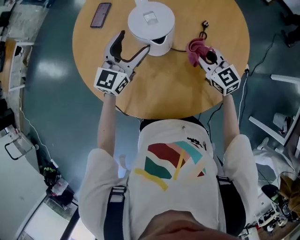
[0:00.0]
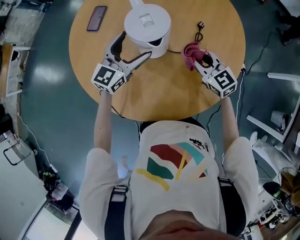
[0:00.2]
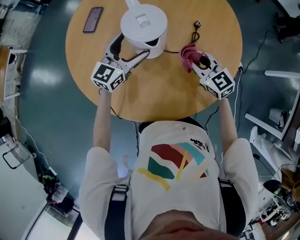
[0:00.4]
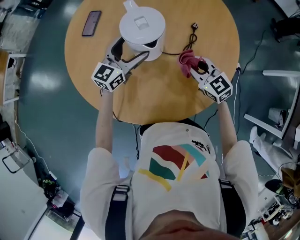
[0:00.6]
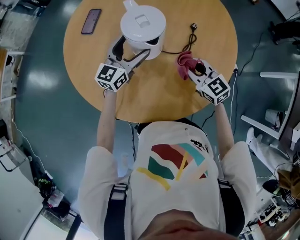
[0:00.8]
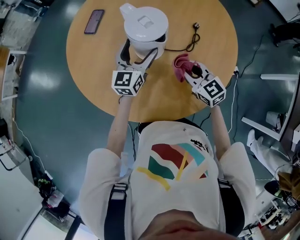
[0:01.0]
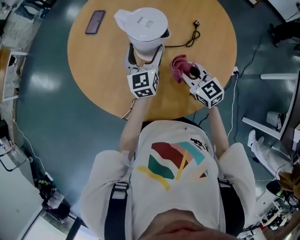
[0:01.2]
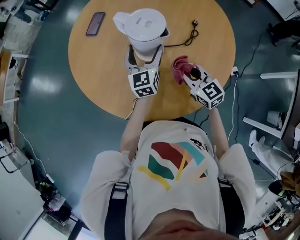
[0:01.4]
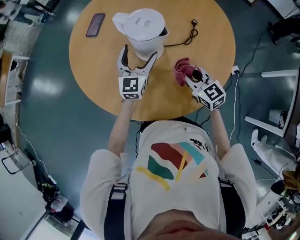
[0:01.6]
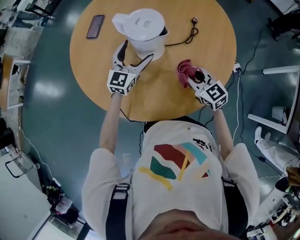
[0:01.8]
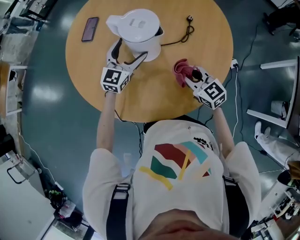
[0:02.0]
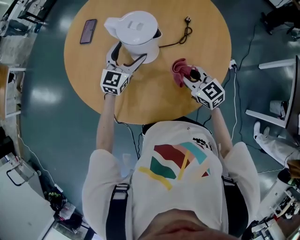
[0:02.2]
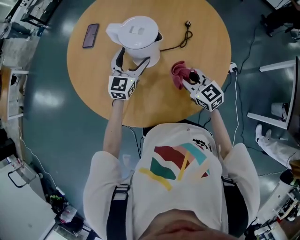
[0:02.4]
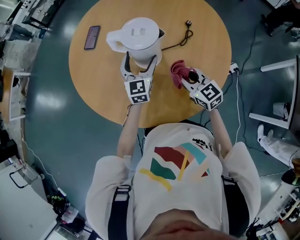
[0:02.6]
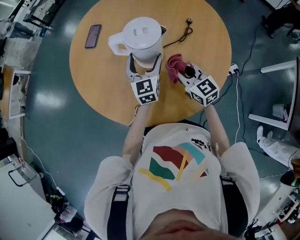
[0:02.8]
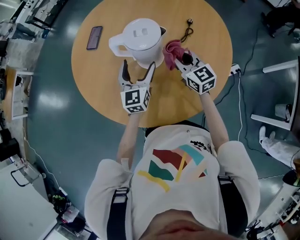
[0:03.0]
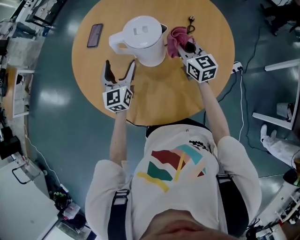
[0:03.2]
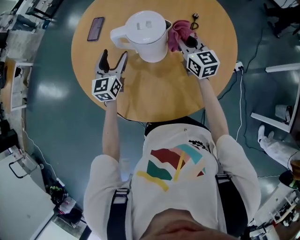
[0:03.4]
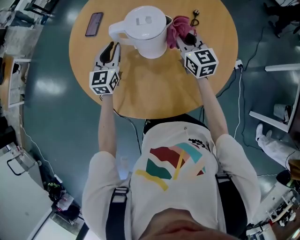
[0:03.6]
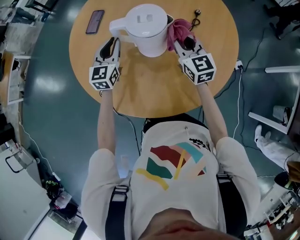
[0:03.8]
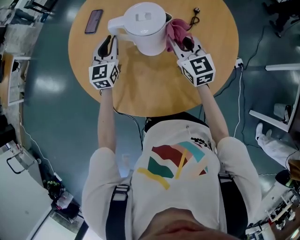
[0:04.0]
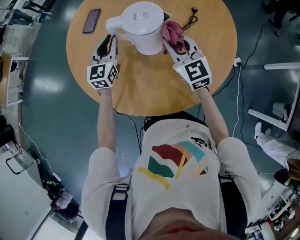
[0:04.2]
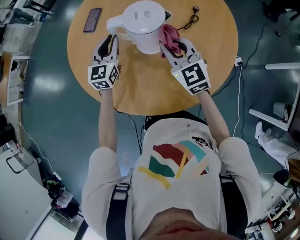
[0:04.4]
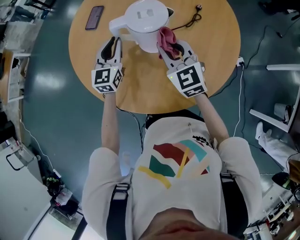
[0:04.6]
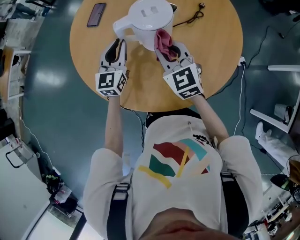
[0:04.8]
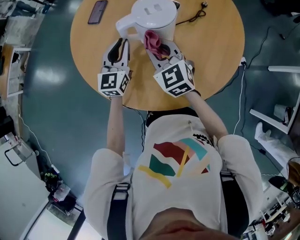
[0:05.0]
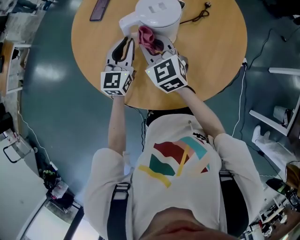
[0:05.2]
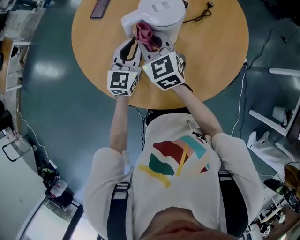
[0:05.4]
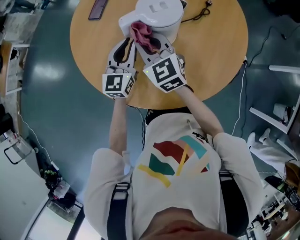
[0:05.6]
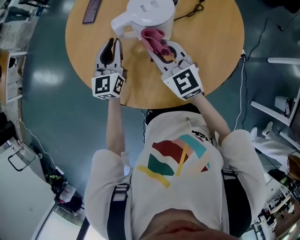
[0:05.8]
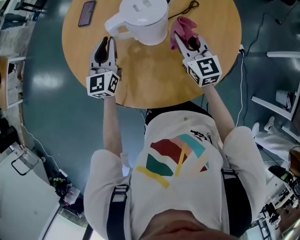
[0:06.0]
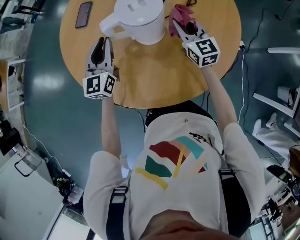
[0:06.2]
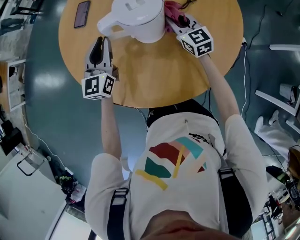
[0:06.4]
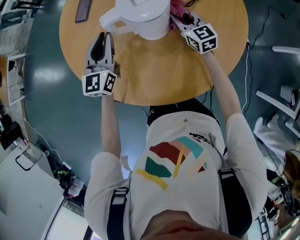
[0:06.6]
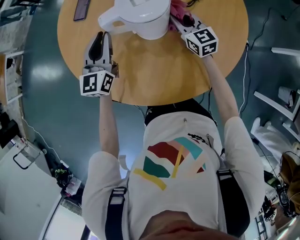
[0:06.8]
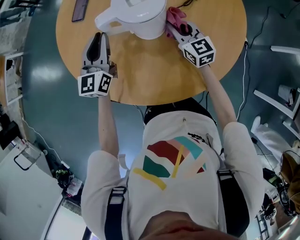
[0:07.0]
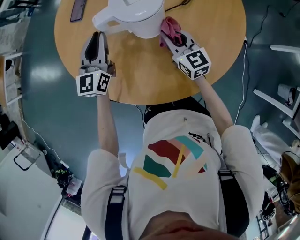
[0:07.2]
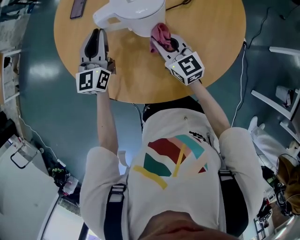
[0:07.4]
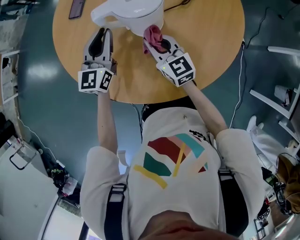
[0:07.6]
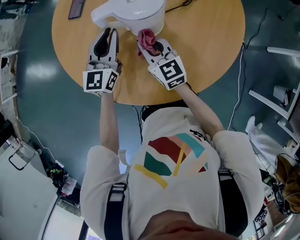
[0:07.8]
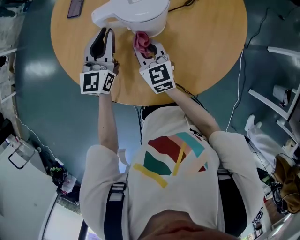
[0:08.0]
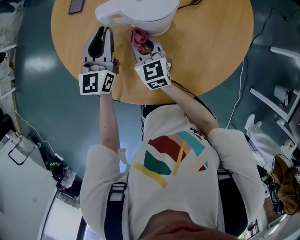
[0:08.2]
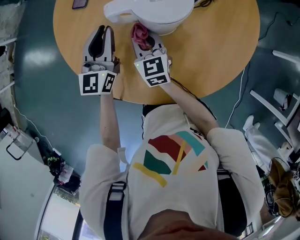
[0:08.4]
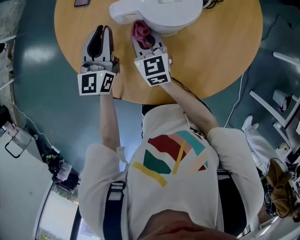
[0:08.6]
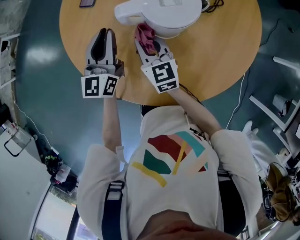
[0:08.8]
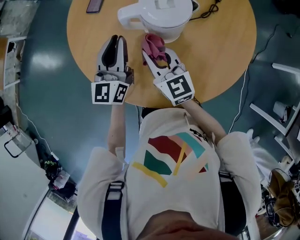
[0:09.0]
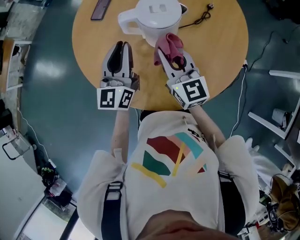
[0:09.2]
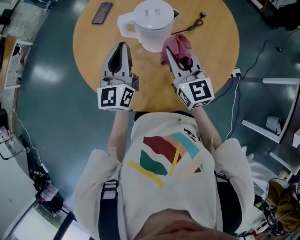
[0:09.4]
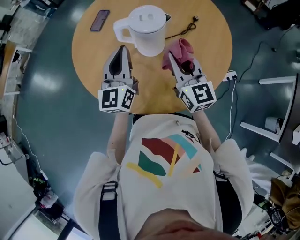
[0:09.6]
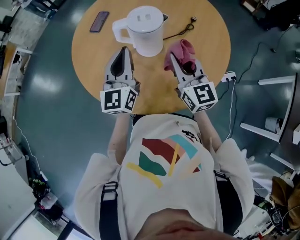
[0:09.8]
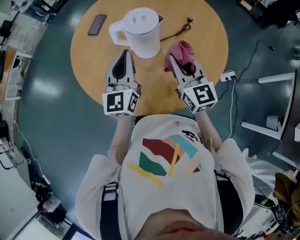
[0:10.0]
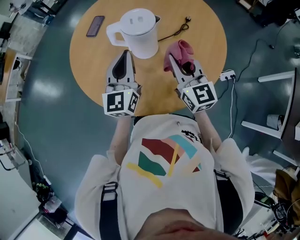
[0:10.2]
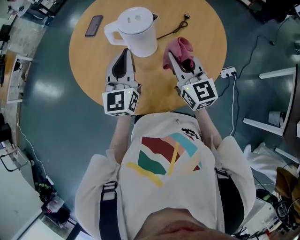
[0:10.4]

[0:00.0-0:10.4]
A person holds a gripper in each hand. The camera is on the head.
0:00.0 to 0:01.4: The left gripper ends up approximately 5 cm from where it was, and rotates approximately 30 degrees. Meanwhile the right gripper is displaced backward by roughly 10 cm.
0:01.4 to 0:03.0: The right gripper shifts roughly 5 cm forward.
0:03.0 to 0:04.4: The right gripper is displaced to the left by approximately 5 cm. The left gripper travels to the left and forward by about 10 cm, and closes its fingers.
0:04.4 to 0:06.0: The right gripper is displaced downward by roughly 5 cm, and moves roughly 10 cm to the left and comes back.
0:06.0 to 0:07.4: The right gripper travels to the left and downward by approximately 10 cm, and goes forward and returns, approximately 10 cm each way.
0:07.4 to 0:09.0: The left gripper moves some 5 cm to the right and comes back, while the right gripper travels to the left and upward by about 10 cm.
0:09.0 to 0:10.4: The right gripper is displaced to the right, upward and backward by approximately 20 cm, while the left gripper goes approximately 15 cm backward, to the right and upward.

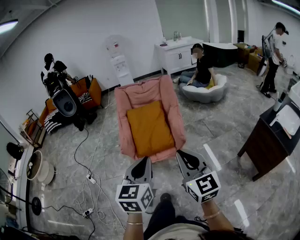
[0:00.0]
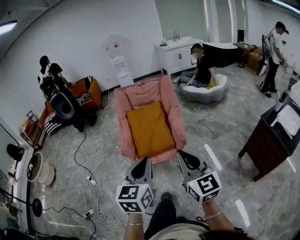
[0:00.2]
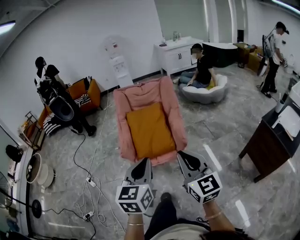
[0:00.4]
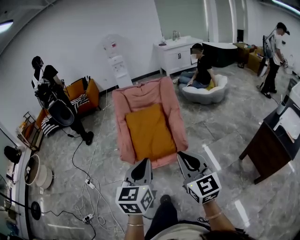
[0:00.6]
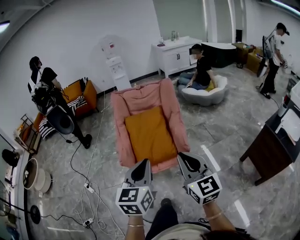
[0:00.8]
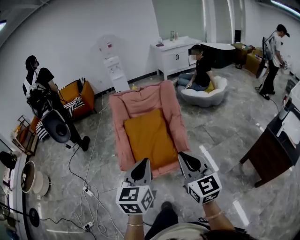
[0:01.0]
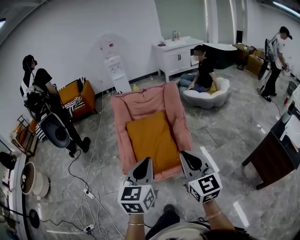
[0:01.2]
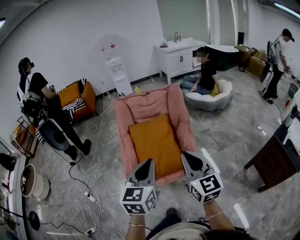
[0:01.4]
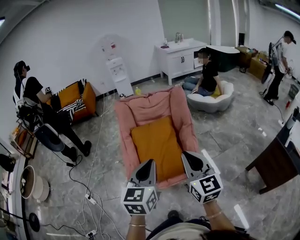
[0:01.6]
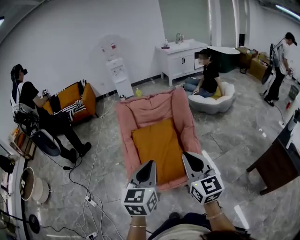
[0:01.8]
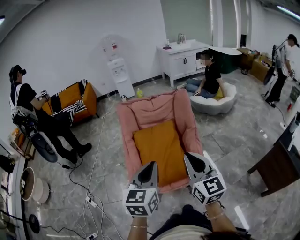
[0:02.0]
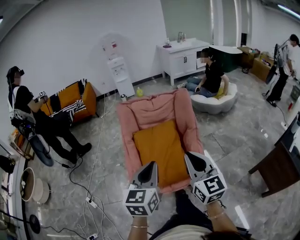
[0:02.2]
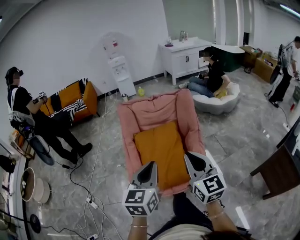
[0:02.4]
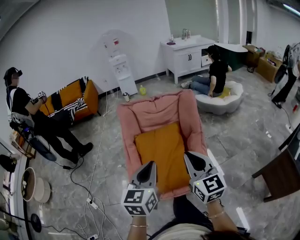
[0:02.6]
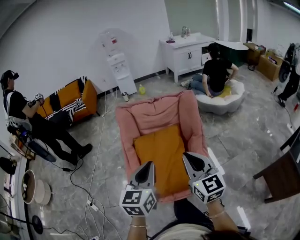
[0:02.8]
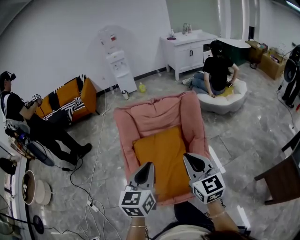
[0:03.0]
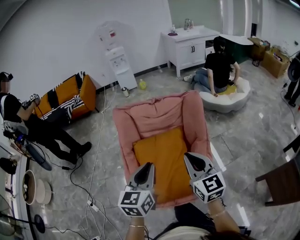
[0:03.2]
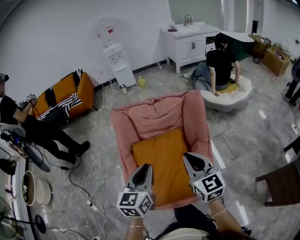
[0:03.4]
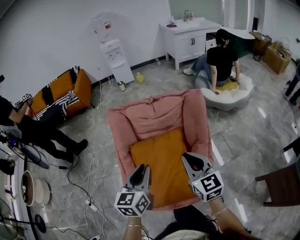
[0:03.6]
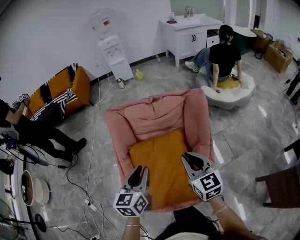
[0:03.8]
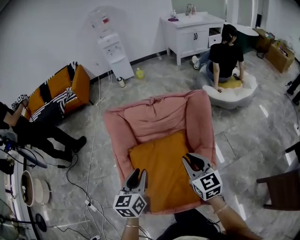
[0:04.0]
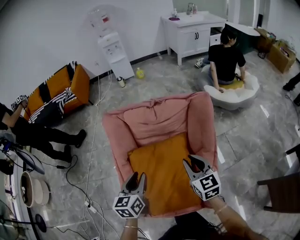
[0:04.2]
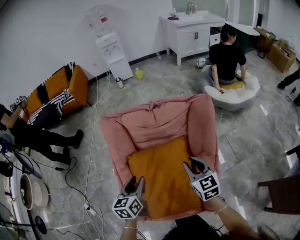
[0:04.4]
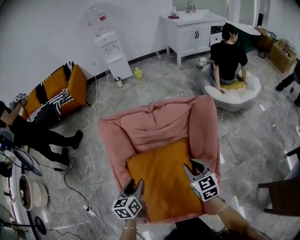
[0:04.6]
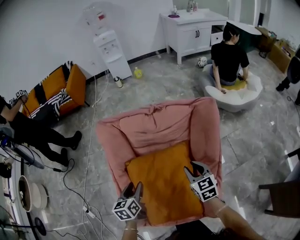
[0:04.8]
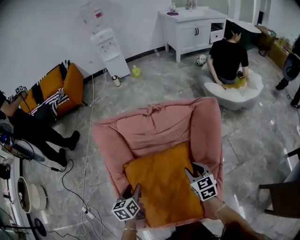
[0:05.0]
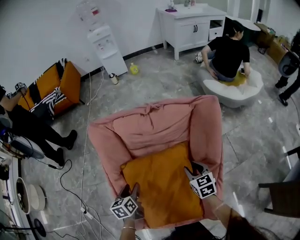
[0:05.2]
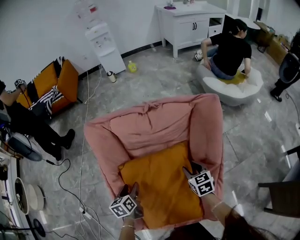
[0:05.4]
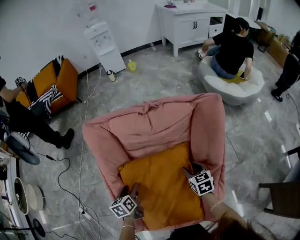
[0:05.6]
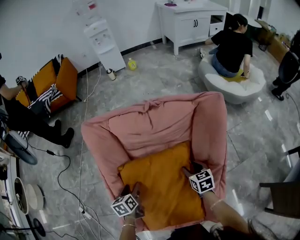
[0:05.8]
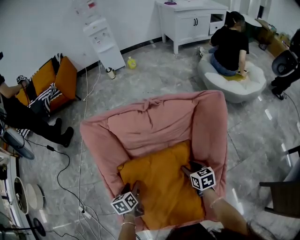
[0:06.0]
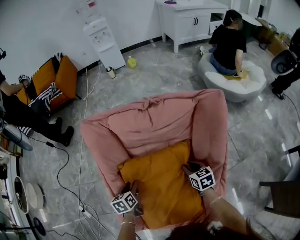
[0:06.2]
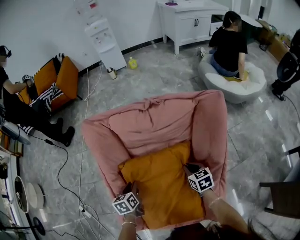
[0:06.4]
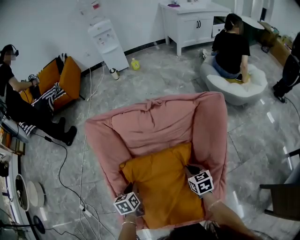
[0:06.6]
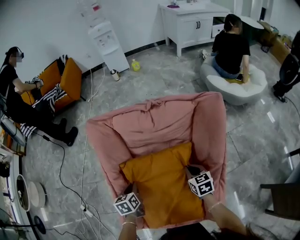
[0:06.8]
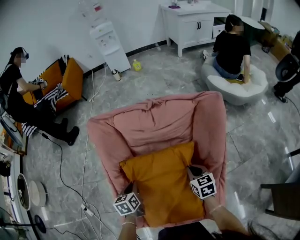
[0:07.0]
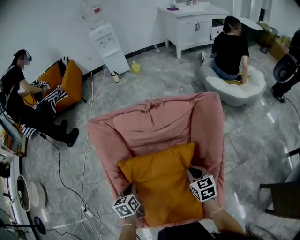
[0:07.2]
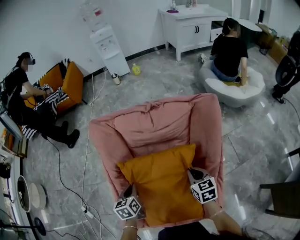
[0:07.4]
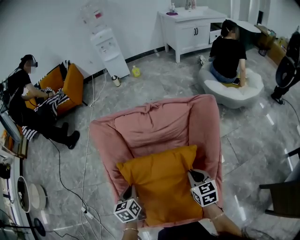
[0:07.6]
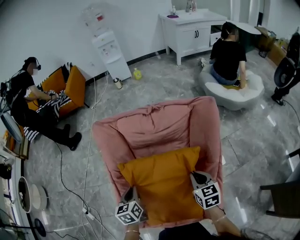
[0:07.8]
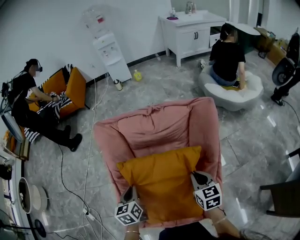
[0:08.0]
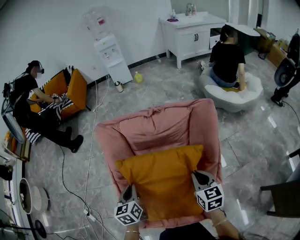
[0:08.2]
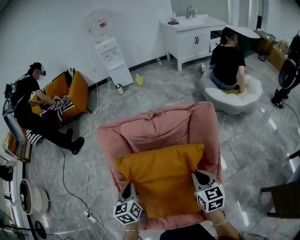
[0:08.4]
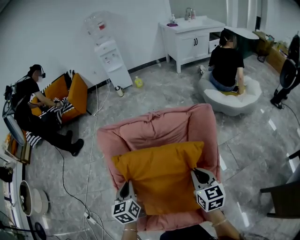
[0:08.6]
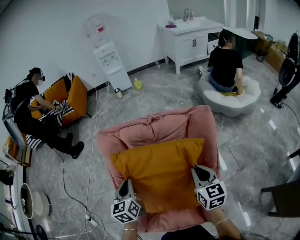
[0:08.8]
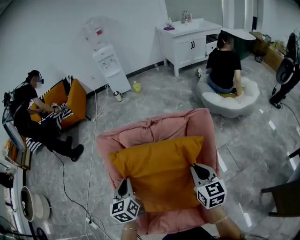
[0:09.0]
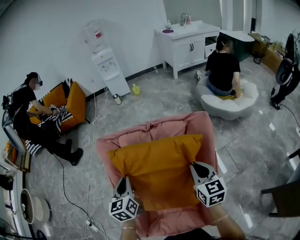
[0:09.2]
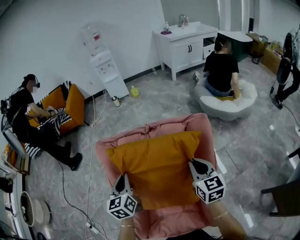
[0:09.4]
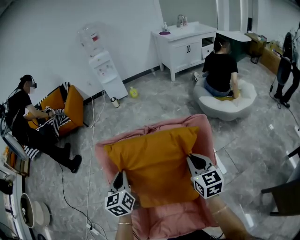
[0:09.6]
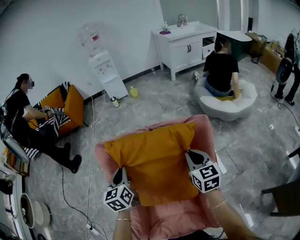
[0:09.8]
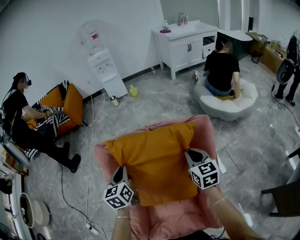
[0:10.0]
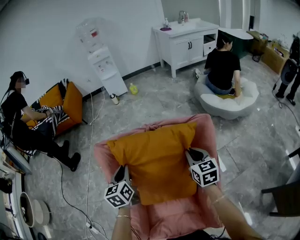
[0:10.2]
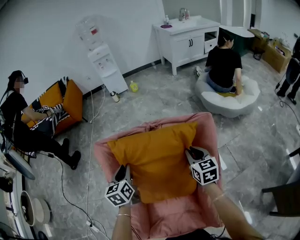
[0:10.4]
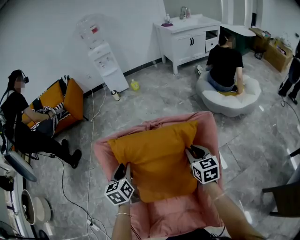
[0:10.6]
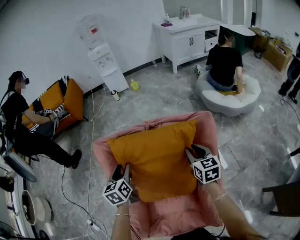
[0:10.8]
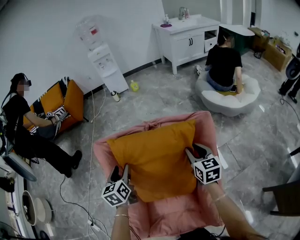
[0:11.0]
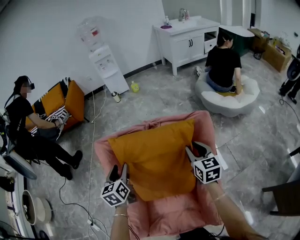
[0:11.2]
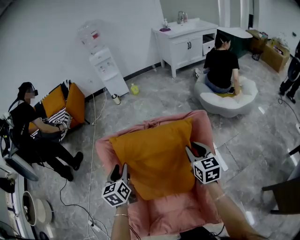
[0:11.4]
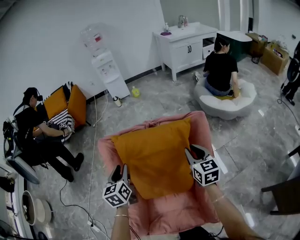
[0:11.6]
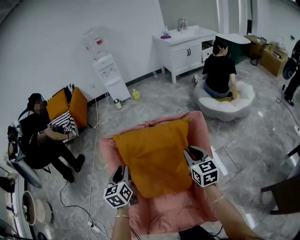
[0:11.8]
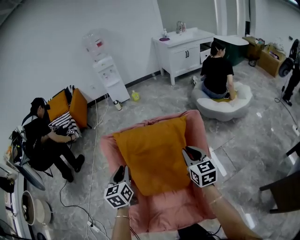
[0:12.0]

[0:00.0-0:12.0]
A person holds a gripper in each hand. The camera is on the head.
0:00.0 to 0:01.6: Both grippers travel together forward, roughly 35 cm.
0:01.6 to 0:03.0: The two grippers go about 30 cm forward.
0:03.0 to 0:04.4: Both grippers travel together forward and downward, roughly 35 cm. The left gripper rotates some 20 degrees, and opens, while the right gripper opens.
0:04.4 to 0:06.0: Both grippers move downward and forward, approximately 30 cm. The right gripper rotates about 30 degrees, and opens up; the left gripper swivels about 20 degrees, and opens its fingers.
0:06.0 to 0:07.6: Both grippers travel together upward and backward, approximately 15 cm. The left gripper closes up. The right gripper closes.
0:07.6 to 0:09.0: The grippers both shift upward by roughly 15 cm.
0:09.0 to 0:10.4: The grippers both shift forward by some 15 cm.
0:10.4 to 0:12.0: Both grippers travel together backward and upward, about 20 cm. The left gripper opens and closes again.

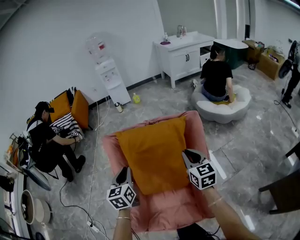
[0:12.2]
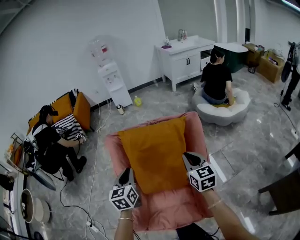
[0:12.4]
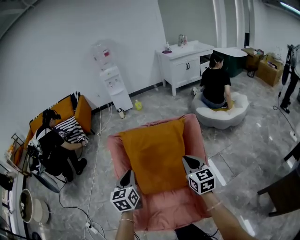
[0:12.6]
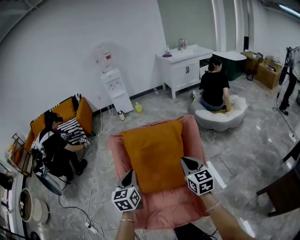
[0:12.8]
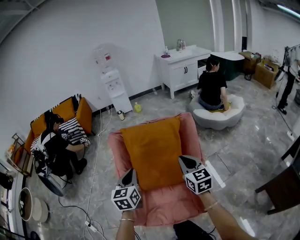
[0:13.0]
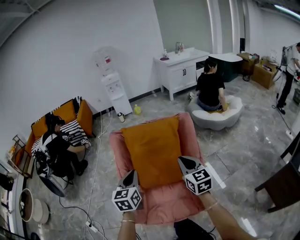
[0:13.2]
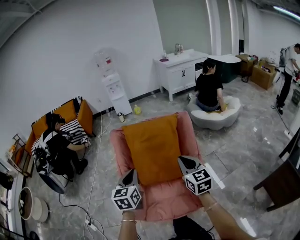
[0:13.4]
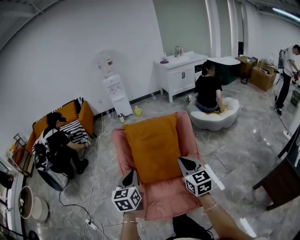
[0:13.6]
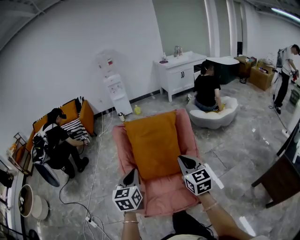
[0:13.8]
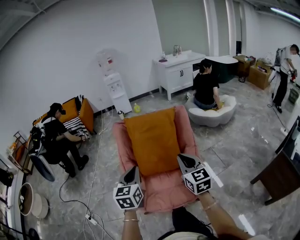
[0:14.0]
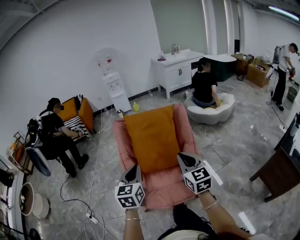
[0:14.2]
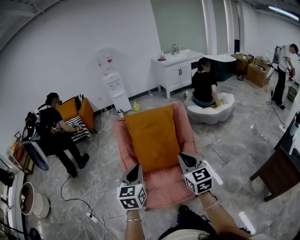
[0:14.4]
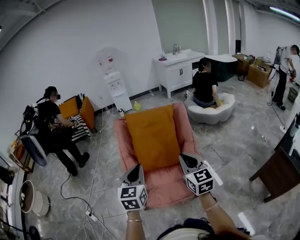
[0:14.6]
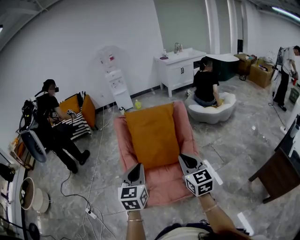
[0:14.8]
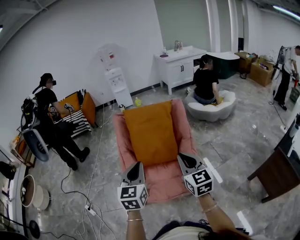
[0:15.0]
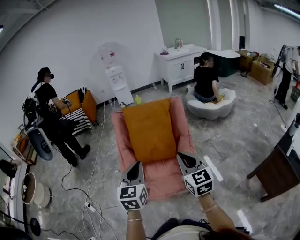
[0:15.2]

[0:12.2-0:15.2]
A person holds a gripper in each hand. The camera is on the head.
0:12.2 to 0:13.8: Both grippers travel together backward, some 35 cm.
0:13.8 to 0:15.2: The right gripper travels backward by some 15 cm, while the left gripper shifts roughly 20 cm backward and to the right.
